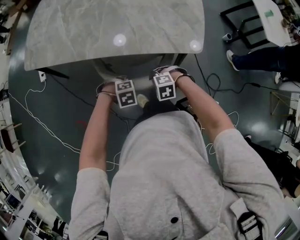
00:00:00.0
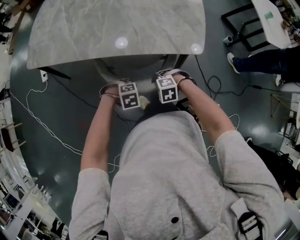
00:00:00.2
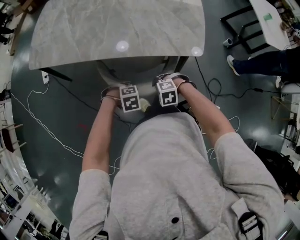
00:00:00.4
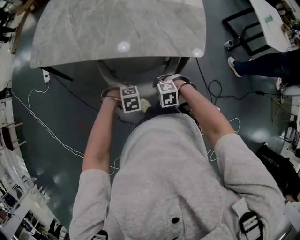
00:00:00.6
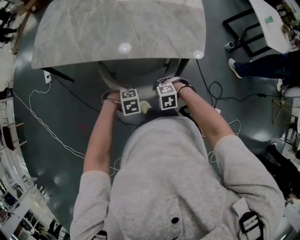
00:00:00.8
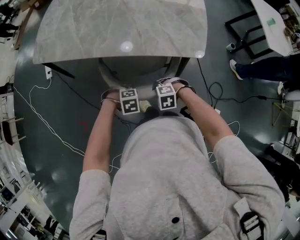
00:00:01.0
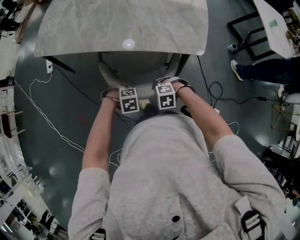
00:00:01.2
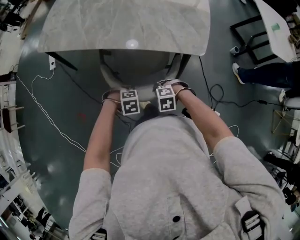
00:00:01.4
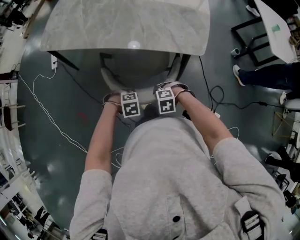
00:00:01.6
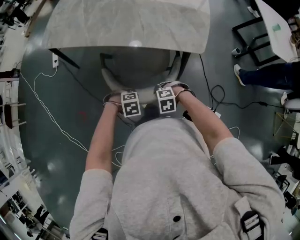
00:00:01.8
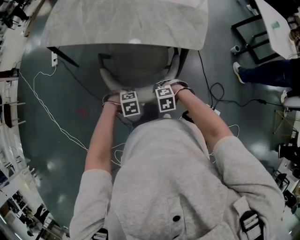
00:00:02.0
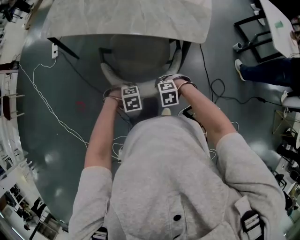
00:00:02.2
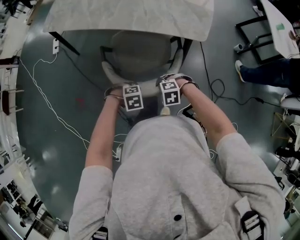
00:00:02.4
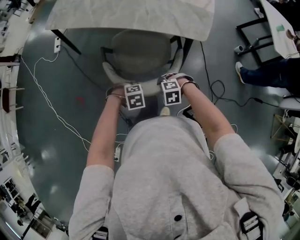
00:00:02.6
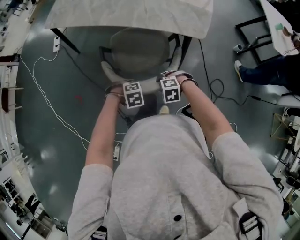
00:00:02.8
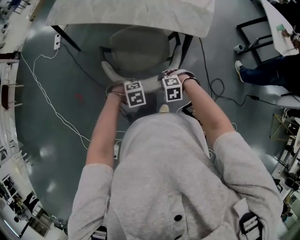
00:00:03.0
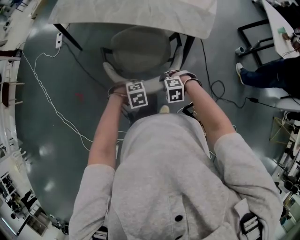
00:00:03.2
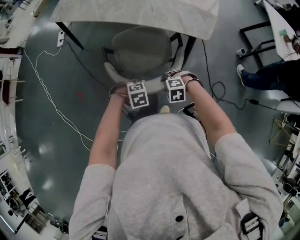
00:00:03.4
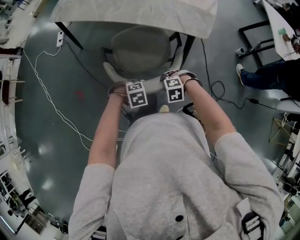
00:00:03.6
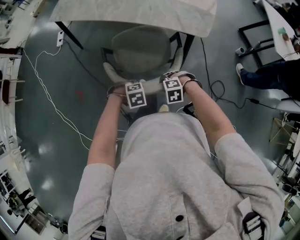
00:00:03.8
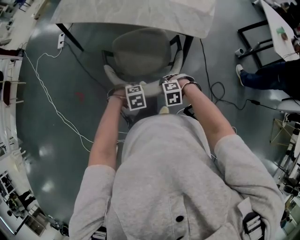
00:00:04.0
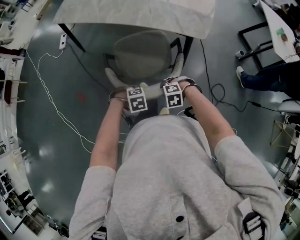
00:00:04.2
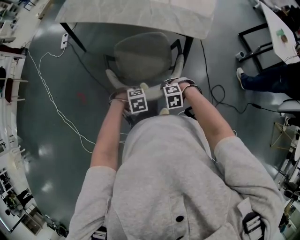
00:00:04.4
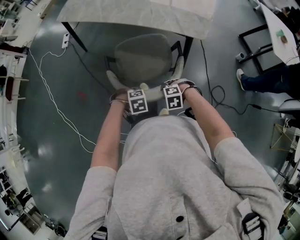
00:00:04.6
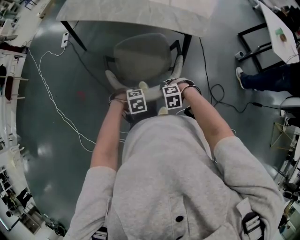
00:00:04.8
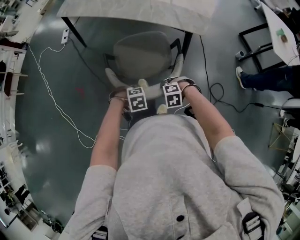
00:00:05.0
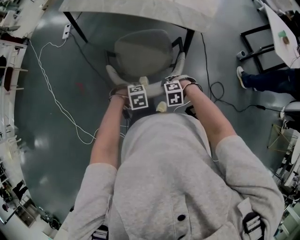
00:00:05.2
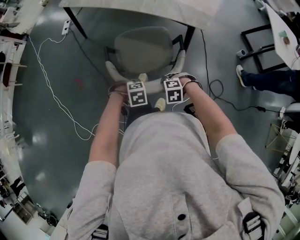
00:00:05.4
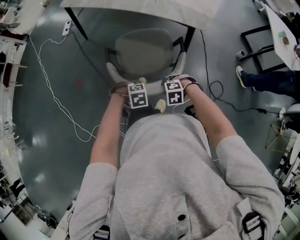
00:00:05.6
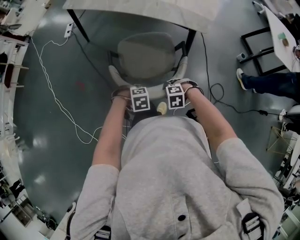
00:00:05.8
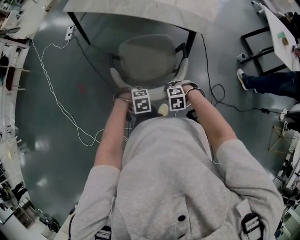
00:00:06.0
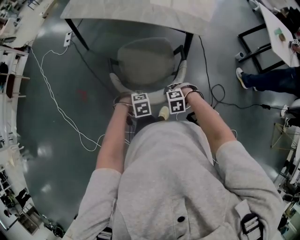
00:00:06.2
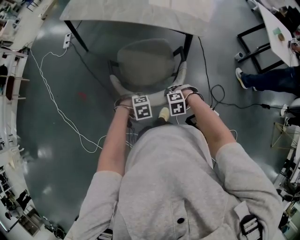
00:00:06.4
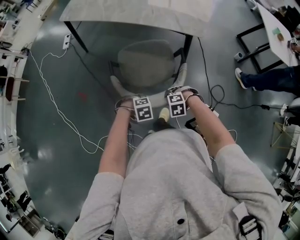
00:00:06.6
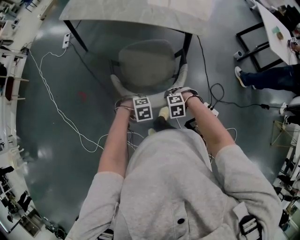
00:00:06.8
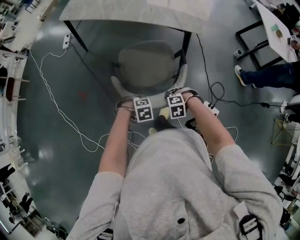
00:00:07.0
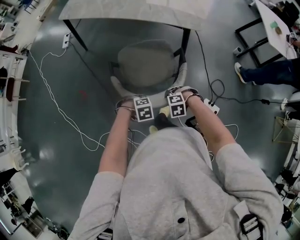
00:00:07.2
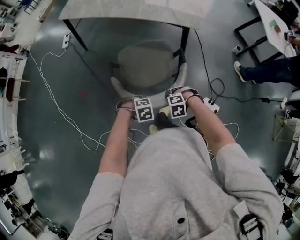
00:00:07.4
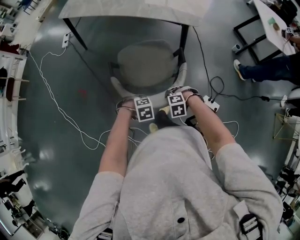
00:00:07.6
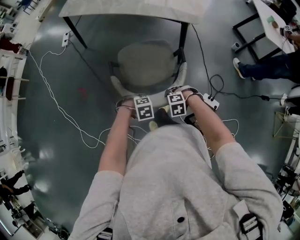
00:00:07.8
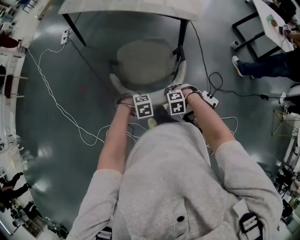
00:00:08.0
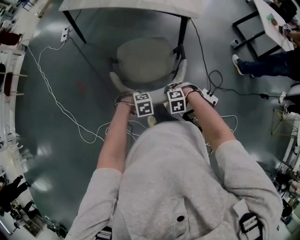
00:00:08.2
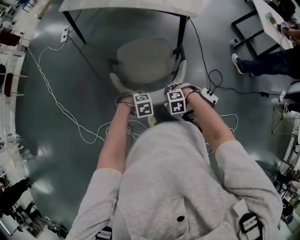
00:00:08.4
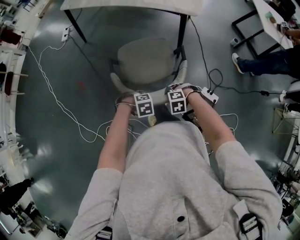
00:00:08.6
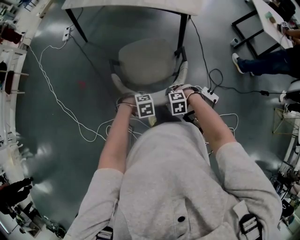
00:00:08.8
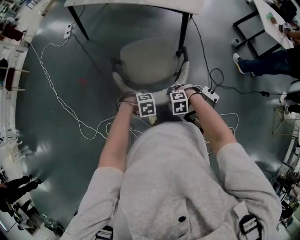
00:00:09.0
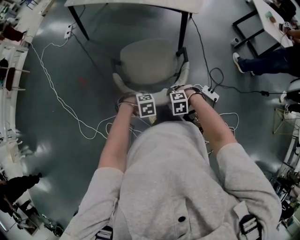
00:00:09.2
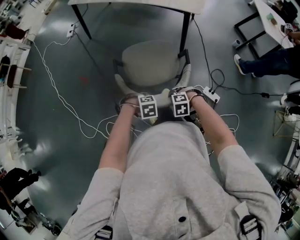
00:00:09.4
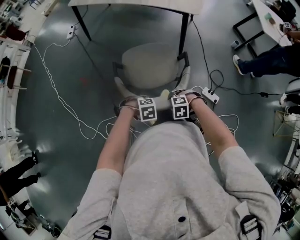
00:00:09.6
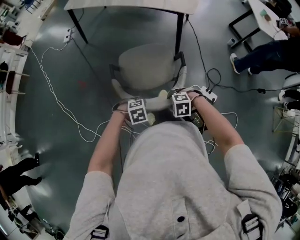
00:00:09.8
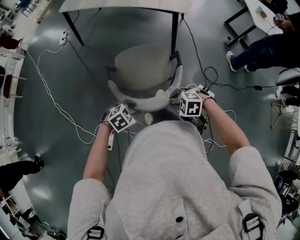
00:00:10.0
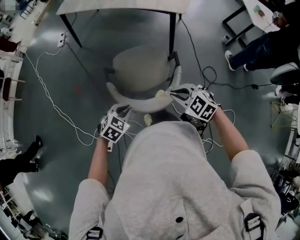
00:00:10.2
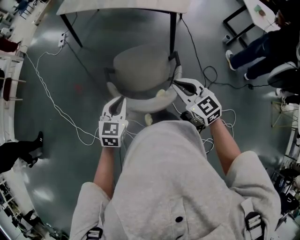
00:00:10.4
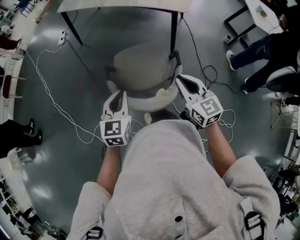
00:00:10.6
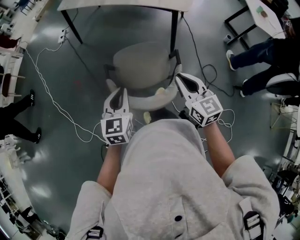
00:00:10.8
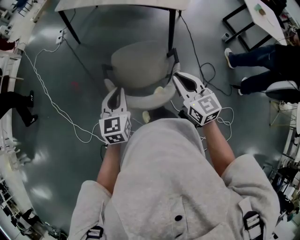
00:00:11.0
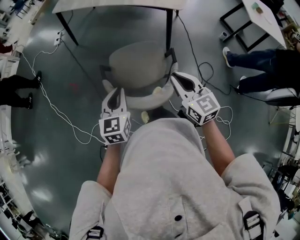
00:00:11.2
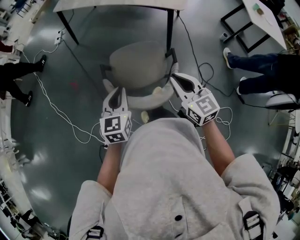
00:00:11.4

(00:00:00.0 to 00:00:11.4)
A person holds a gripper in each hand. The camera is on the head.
00:00:00.0 - 00:00:01.4: The left gripper changes place by about 10 cm; the right gripper ends up some 10 cm from where it was.
00:00:01.4 - 00:00:02.8: The right gripper ends up approximately 10 cm from where it was. The left gripper moves approximately 10 cm.
00:00:02.8 - 00:00:04.2: The right gripper changes place by approximately 5 cm. Meanwhile the left gripper changes place by approximately 5 cm.
00:00:04.2 - 00:00:05.6: The right gripper moves roughly 10 cm; the left gripper moves approximately 10 cm.
00:00:05.6 - 00:00:07.2: The left gripper moves about 5 cm; the right gripper shifts by roughly 5 cm.
00:00:07.2 - 00:00:08.6: The right gripper ends up some 10 cm from where it was, while the left gripper moves approximately 10 cm.
00:00:08.6 - 00:00:10.0: The left gripper shifts by roughly 10 cm, and changes its angle by some 30 degrees. Meanwhile the right gripper changes place by roughly 10 cm.
00:00:10.0 - 00:00:11.4: The grippers both shift upward by approximately 15 cm. The right gripper points its fingers some 50 degrees further upward, and closes up. The left gripper points its fingers about 40 degrees further upward, and closes.

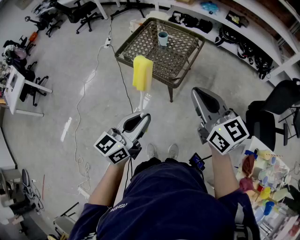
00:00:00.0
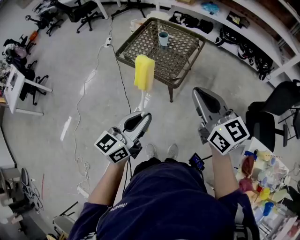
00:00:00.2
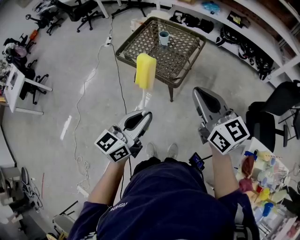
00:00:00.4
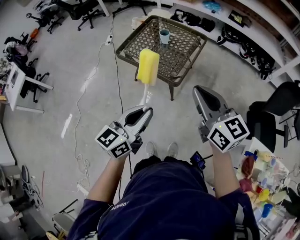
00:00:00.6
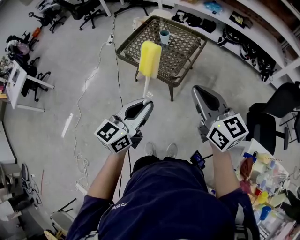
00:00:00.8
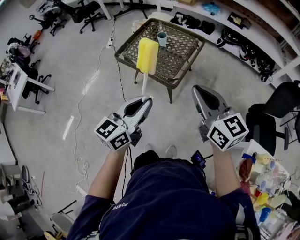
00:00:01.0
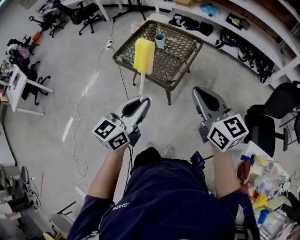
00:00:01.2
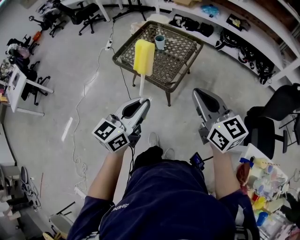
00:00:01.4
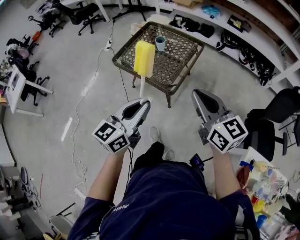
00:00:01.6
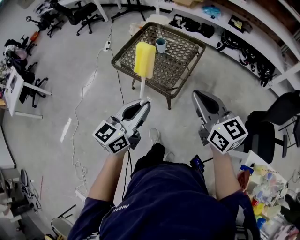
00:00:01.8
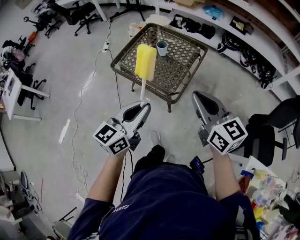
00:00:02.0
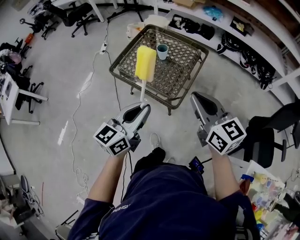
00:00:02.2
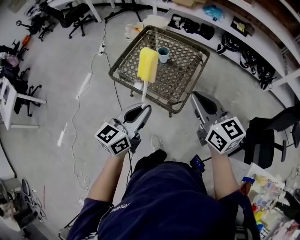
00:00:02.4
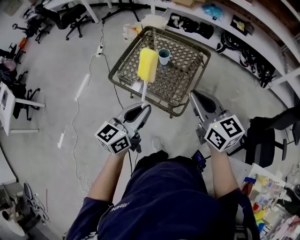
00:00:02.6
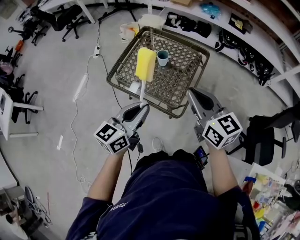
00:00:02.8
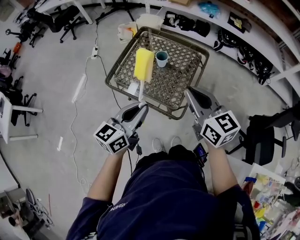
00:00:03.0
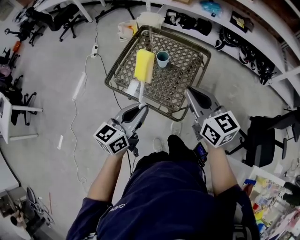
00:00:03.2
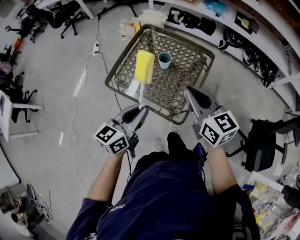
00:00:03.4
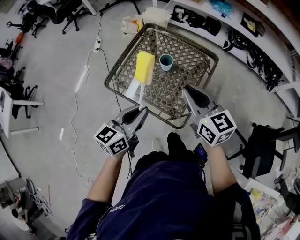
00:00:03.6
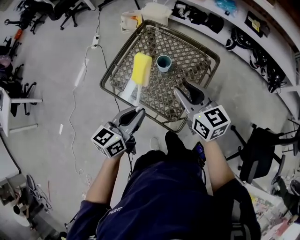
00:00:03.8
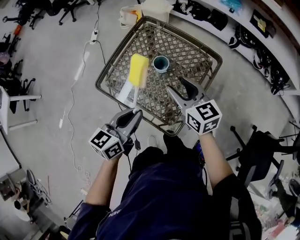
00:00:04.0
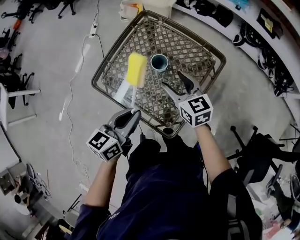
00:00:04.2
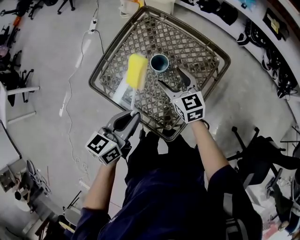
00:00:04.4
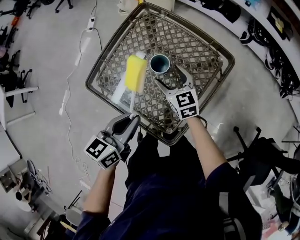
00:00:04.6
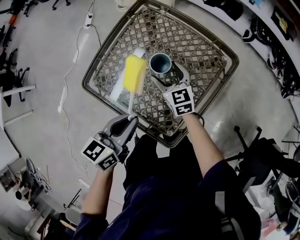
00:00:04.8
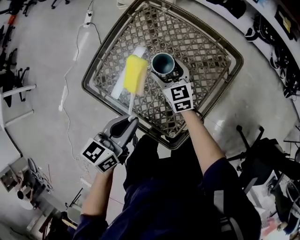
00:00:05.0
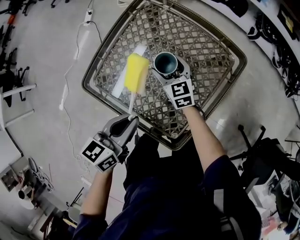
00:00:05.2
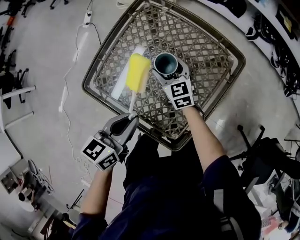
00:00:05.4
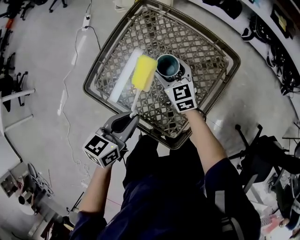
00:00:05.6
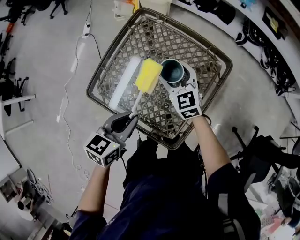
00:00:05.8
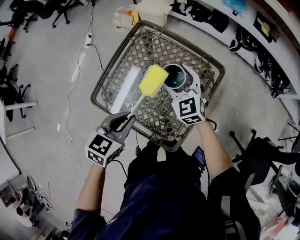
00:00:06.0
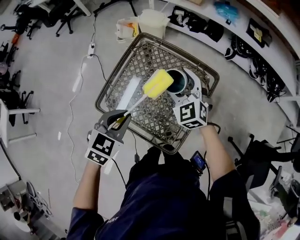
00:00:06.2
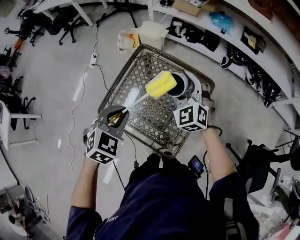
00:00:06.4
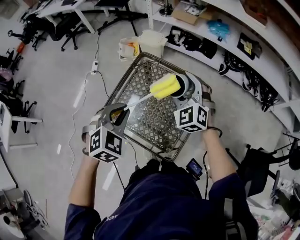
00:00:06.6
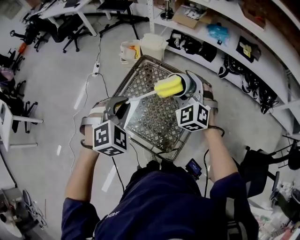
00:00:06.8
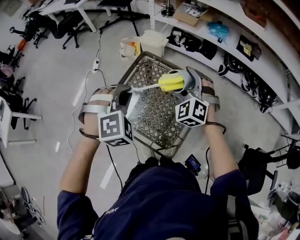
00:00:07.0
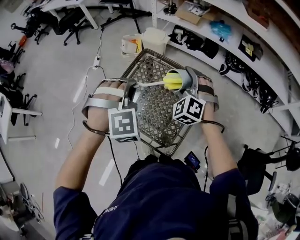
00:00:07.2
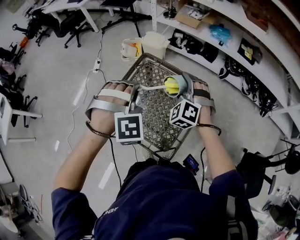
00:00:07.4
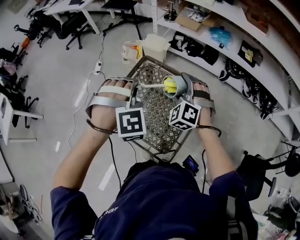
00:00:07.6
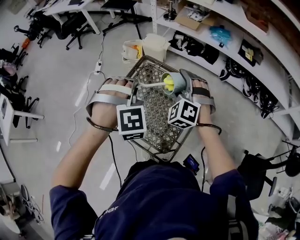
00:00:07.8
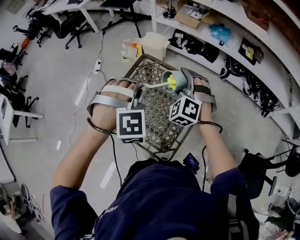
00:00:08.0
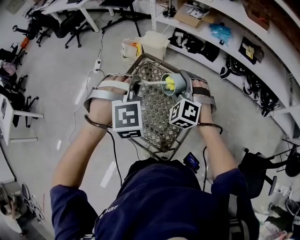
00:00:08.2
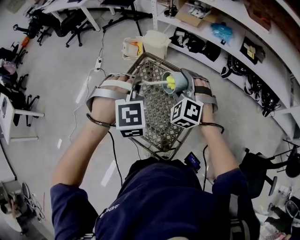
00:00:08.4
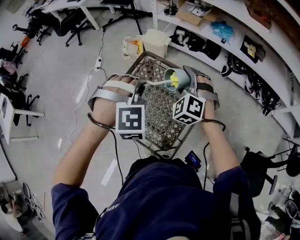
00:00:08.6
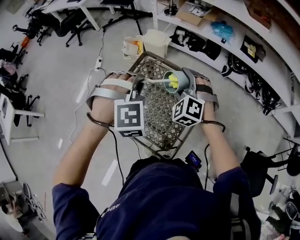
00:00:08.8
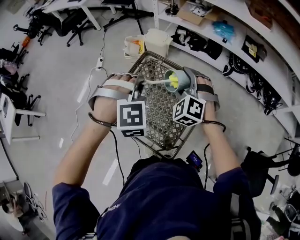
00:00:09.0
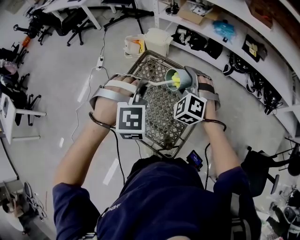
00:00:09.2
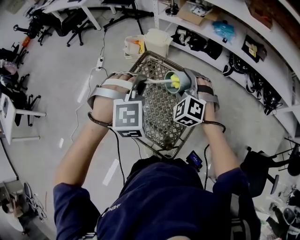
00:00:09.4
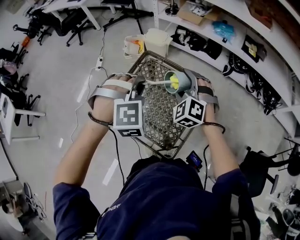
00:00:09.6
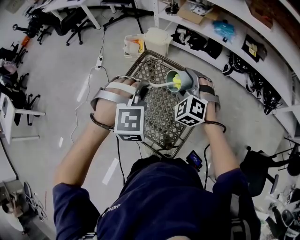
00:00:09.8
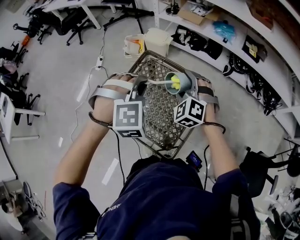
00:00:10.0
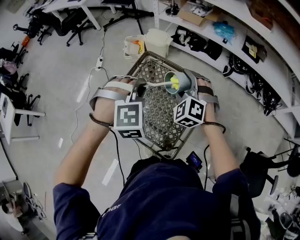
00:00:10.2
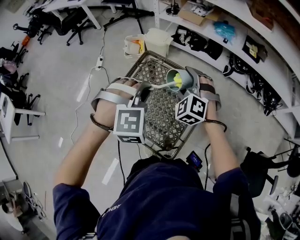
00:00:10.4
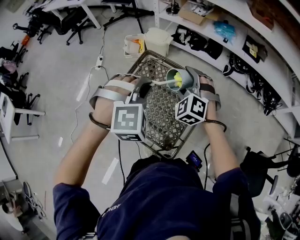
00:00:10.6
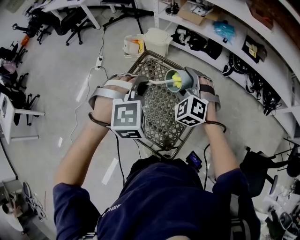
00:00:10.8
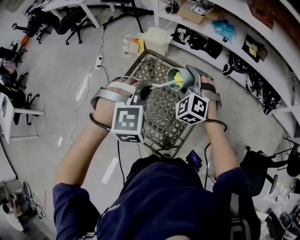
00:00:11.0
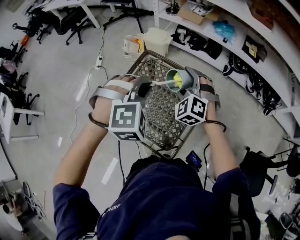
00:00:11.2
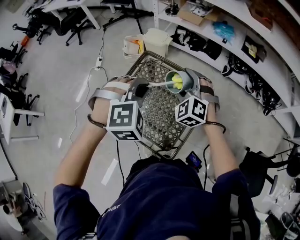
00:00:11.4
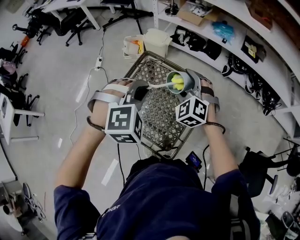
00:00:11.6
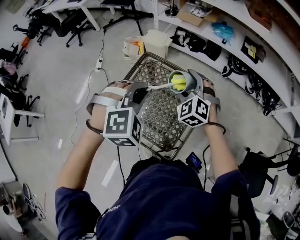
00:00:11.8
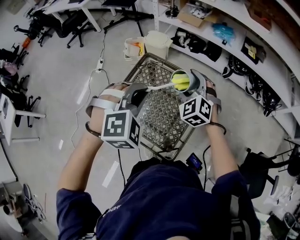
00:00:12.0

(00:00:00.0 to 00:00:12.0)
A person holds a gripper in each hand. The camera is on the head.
00:00:00.0 - 00:00:01.6: The right gripper changes place by some 5 cm. Meanwhile the left gripper is displaced forward by roughly 10 cm.
00:00:01.6 - 00:00:03.0: Both grippers travel together forward and to the left, approximately 25 cm.
00:00:03.0 - 00:00:04.4: The left gripper goes roughly 20 cm forward and downward, and turns by approximately 20 degrees, while the right gripper is displaced downward and forward by some 40 cm, and opens.
00:00:04.4 - 00:00:06.0: The left gripper changes its angle by roughly 30 degrees, while the right gripper travels forward by approximately 5 cm, reaches some 15 cm downward, then returns, and turns by some 30 degrees.
00:00:06.0 - 00:00:07.6: The right gripper travels upward by approximately 15 cm, and changes its angle by about 40 degrees, while the left gripper is displaced upward and forward by roughly 20 cm, and twists approximately 80 degrees clockwise, seen from behind.
00:00:07.6 - 00:00:10.4: The grippers move only a little.
00:00:10.4 - 00:00:12.0: The grippers make only small movements.
